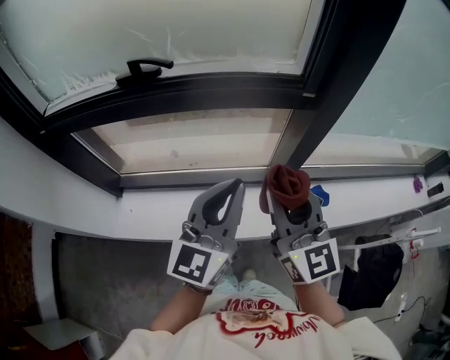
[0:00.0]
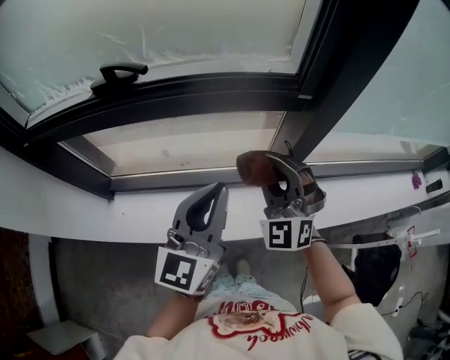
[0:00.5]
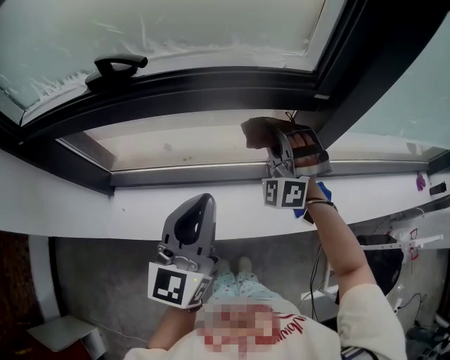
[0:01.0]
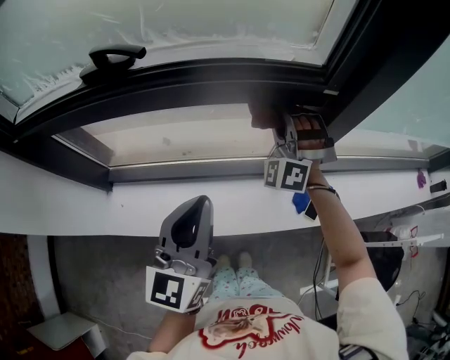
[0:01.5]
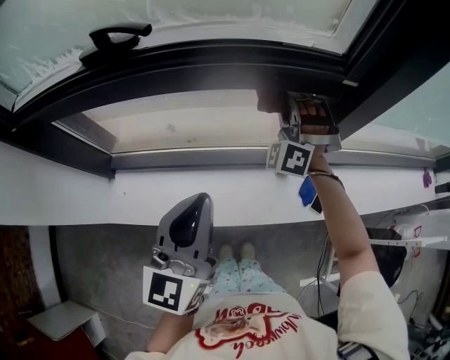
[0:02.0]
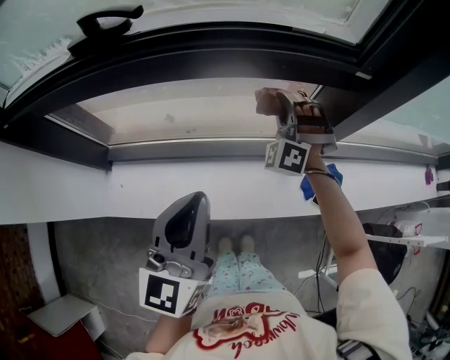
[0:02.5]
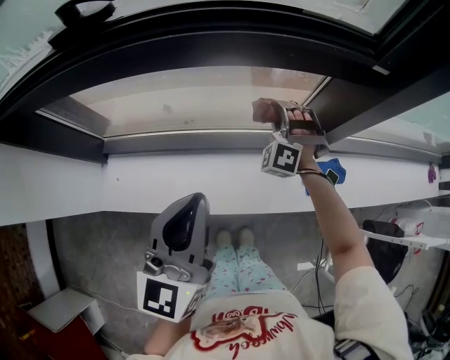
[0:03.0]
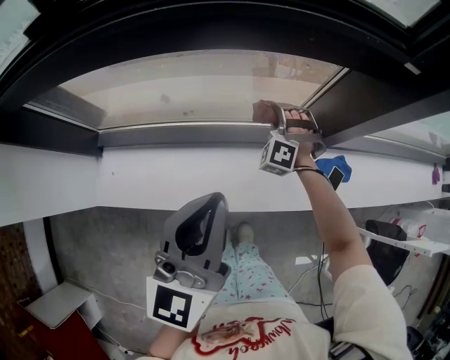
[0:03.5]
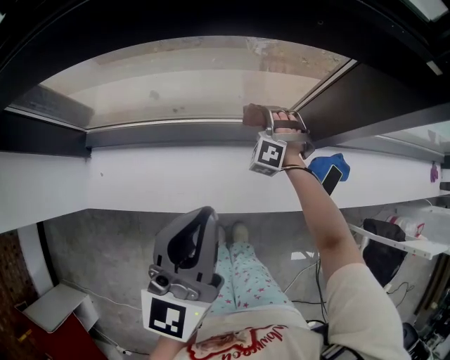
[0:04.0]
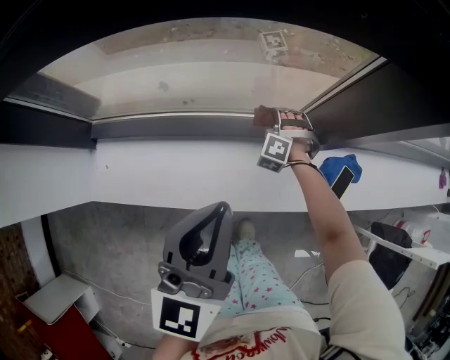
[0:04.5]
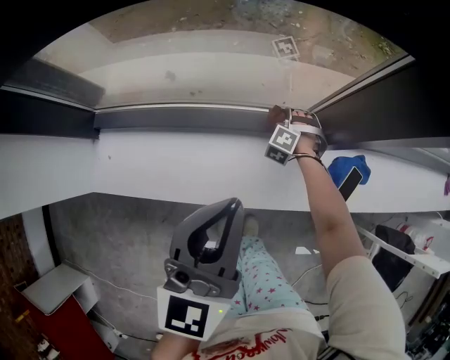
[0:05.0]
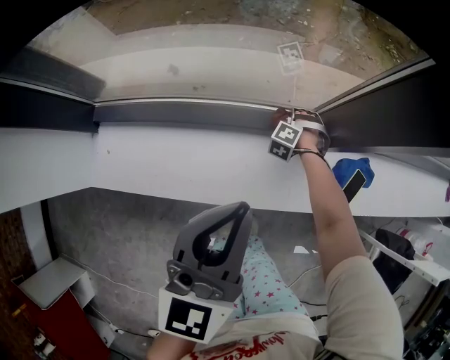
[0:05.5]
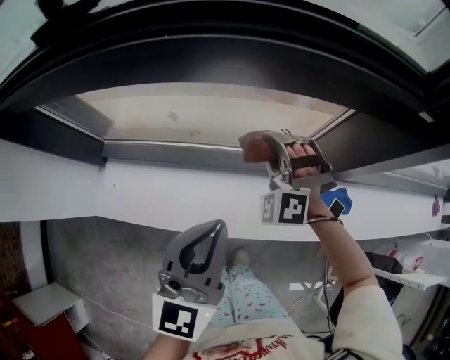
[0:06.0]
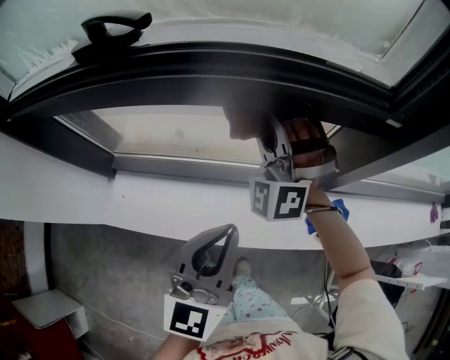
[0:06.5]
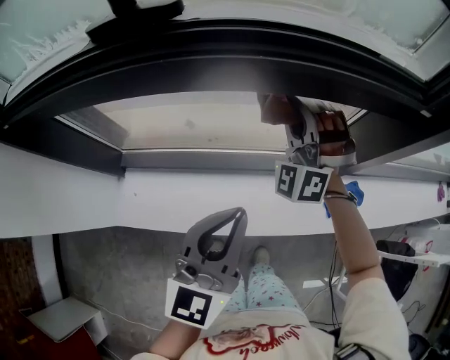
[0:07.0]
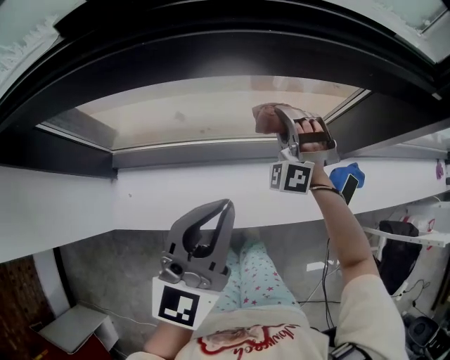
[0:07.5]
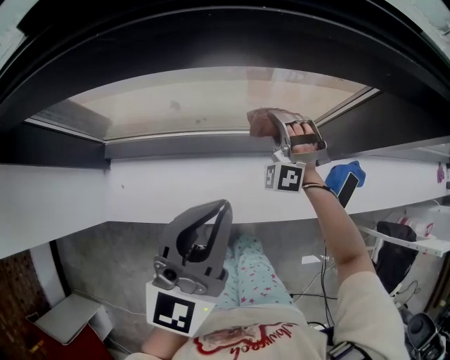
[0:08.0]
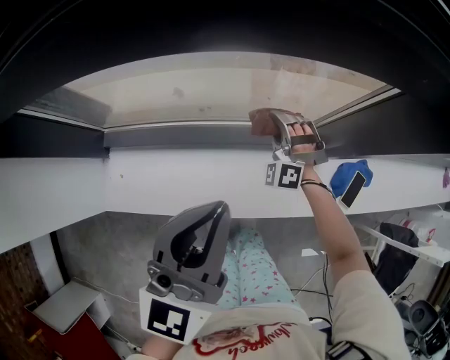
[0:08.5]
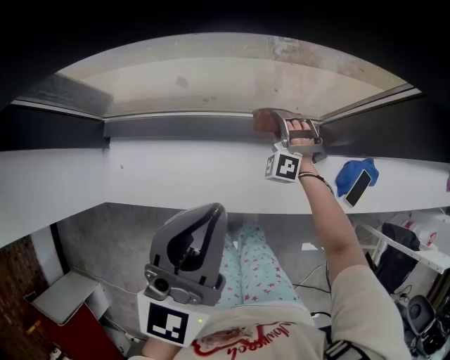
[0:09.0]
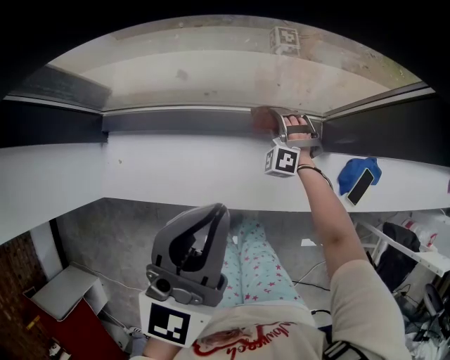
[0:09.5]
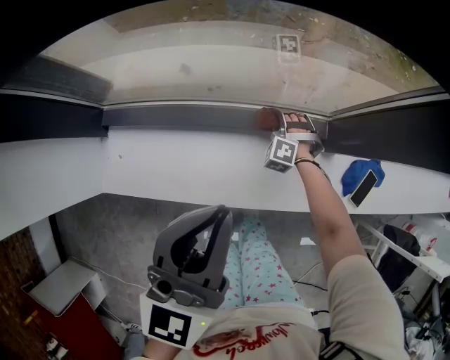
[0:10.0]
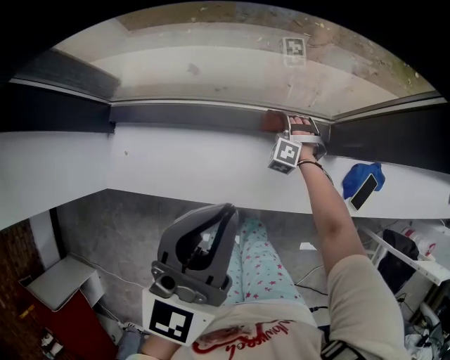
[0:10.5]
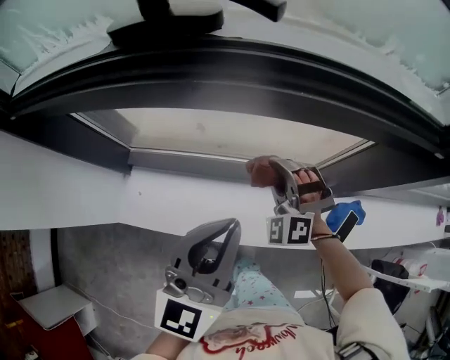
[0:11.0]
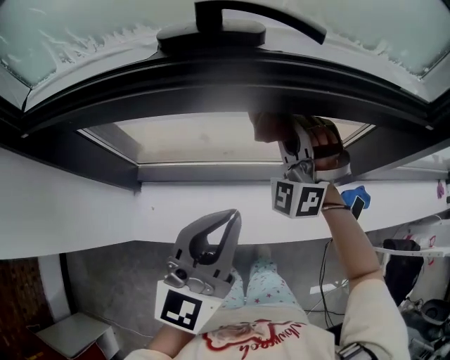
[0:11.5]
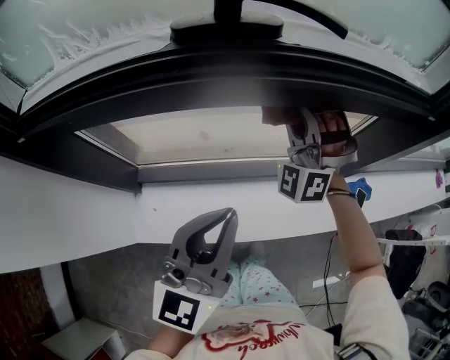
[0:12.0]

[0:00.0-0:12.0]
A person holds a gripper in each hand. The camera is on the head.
0:00.0 to 0:02.0: The left gripper heads to the left and downward, covering some 10 cm, while the right gripper heads forward and downward, covering roughly 30 cm, and rolls counterclockwise, seen from behind, by approximately 80 degrees.
0:02.0 to 0:04.0: The right gripper travels downward by approximately 30 cm, and turns by roughly 30 degrees. Meanwhile the left gripper moves downward, approximately 10 cm.
0:04.0 to 0:06.0: The right gripper is displaced upward by roughly 15 cm.
0:06.0 to 0:08.0: The right gripper reaches roughly 15 cm upward, then returns, while the left gripper travels to the left by about 5 cm.
0:08.0 to 0:10.0: The right gripper moves downward, roughly 25 cm, and turns by roughly 30 degrees. The left gripper moves downward, about 5 cm.
0:10.0 to 0:12.0: The right gripper heads upward, covering roughly 50 cm, and points its fingers about 50 degrees further upward. Meanwhile the left gripper heads upward and to the left, covering about 15 cm.

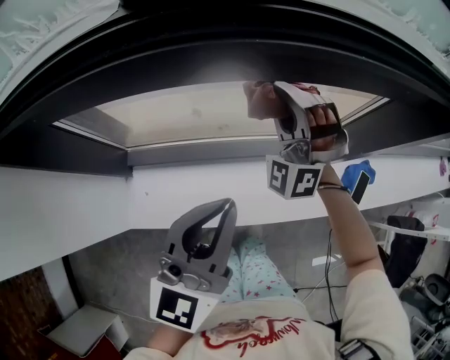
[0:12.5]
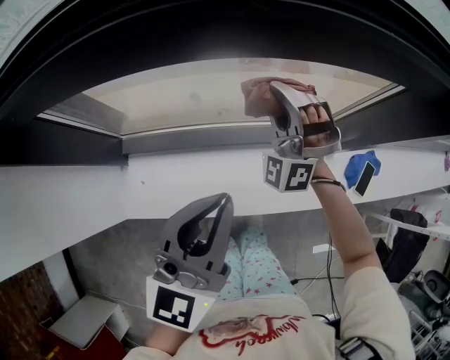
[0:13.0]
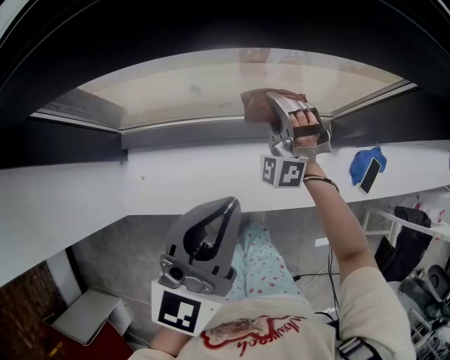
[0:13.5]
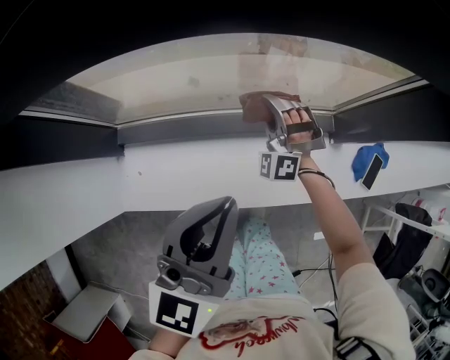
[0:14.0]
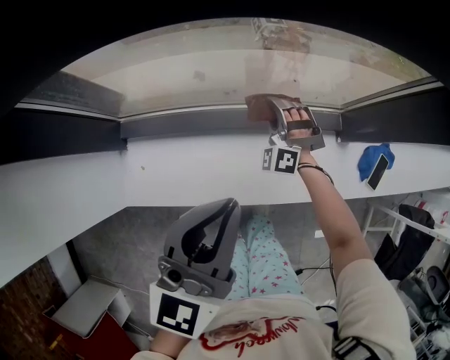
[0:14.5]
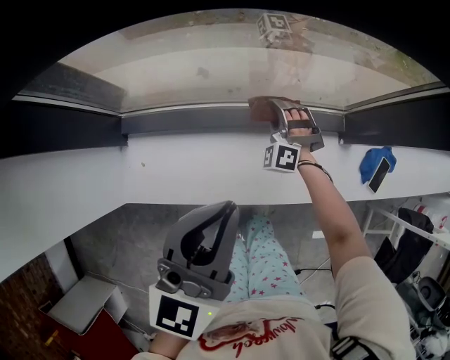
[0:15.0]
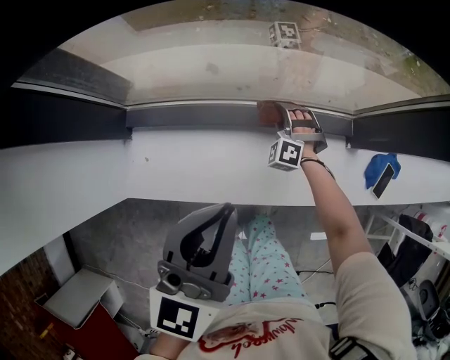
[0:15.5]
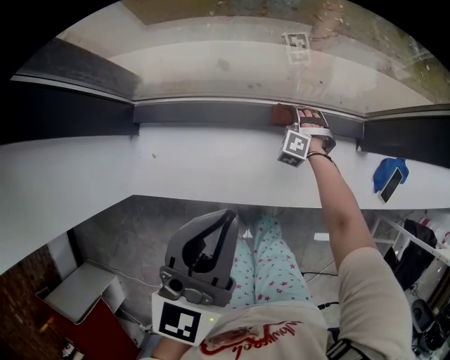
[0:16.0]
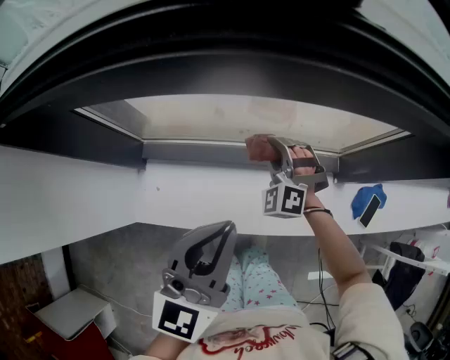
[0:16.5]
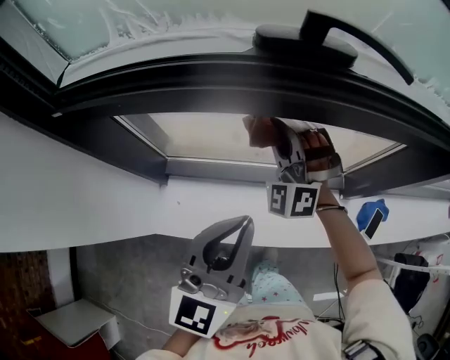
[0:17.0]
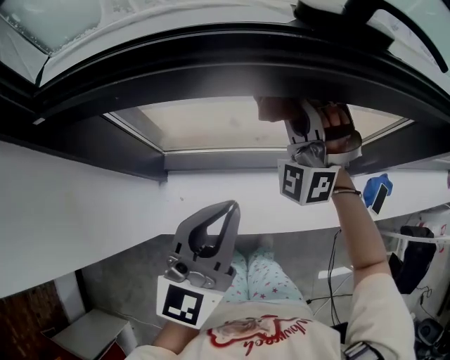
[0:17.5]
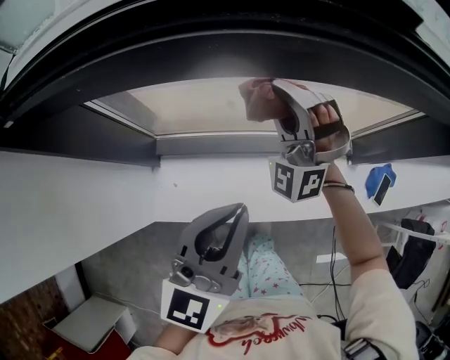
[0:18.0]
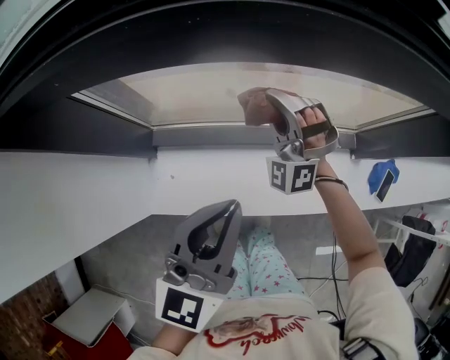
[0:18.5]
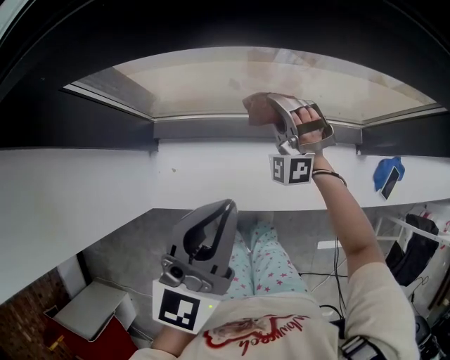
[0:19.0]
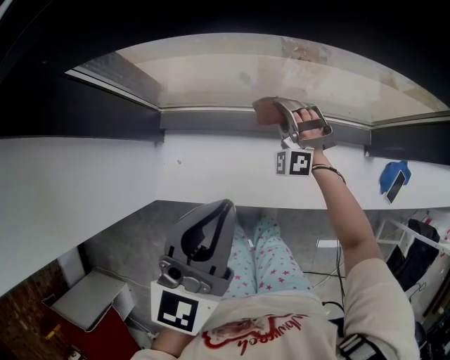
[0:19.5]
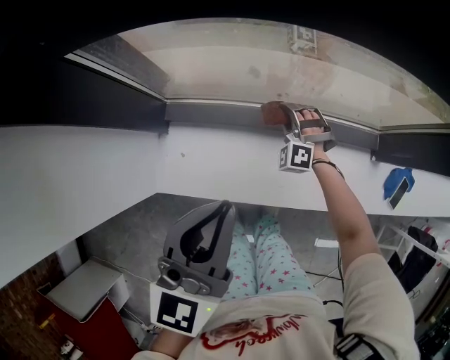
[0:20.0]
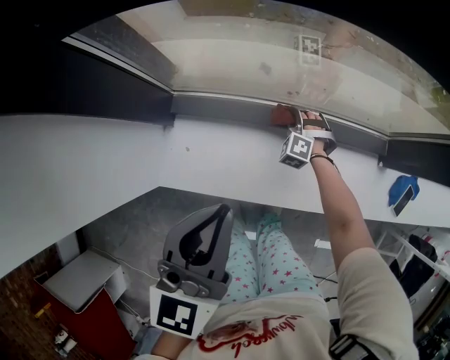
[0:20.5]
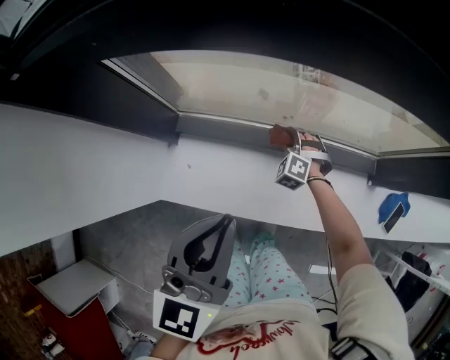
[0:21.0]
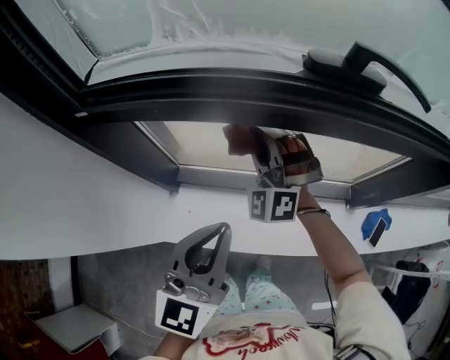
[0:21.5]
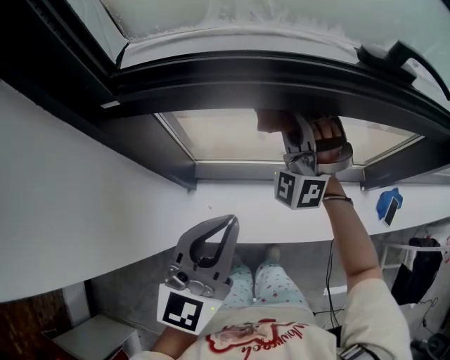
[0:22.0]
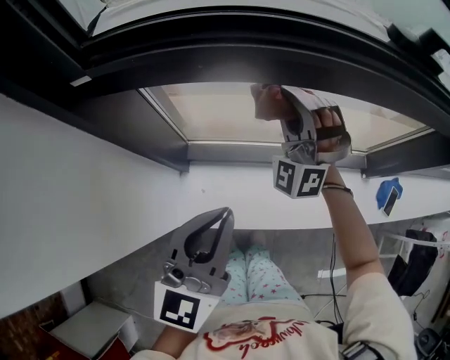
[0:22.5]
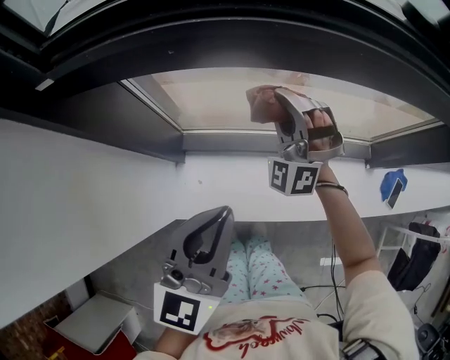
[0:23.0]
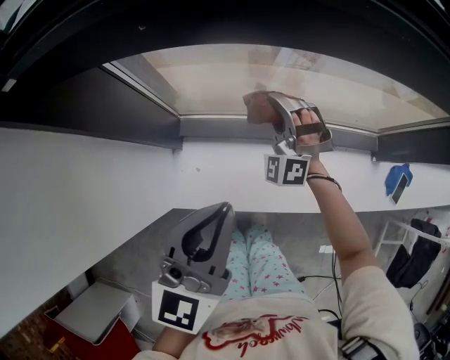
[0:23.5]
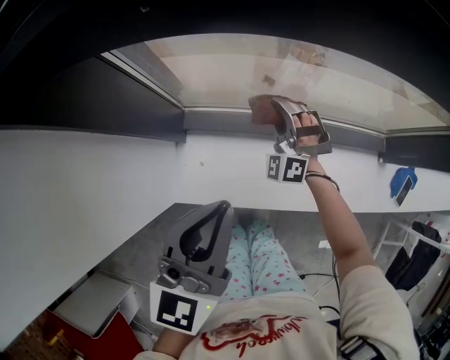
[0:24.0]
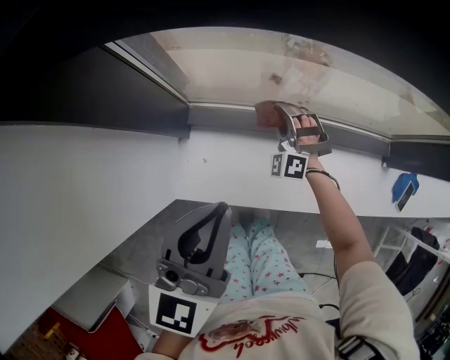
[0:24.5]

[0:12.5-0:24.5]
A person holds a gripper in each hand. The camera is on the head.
0:12.5 to 0:14.5: The left gripper is displaced downward by about 5 cm; the right gripper travels downward by roughly 30 cm, and turns by roughly 20 degrees.
0:14.5 to 0:16.5: The left gripper moves about 5 cm. Meanwhile the right gripper shifts about 10 cm upward.
0:16.5 to 0:18.5: The grippers both shift to the left by about 10 cm. The right gripper travels upward and back again, roughly 25 cm each way, and turns by about 20 degrees.
0:18.5 to 0:20.5: The left gripper goes roughly 5 cm downward and to the left, while the right gripper travels downward by about 35 cm, and angles its fingers downward, by about 40 degrees.
0:20.5 to 0:22.5: The left gripper is displaced upward and to the left by some 10 cm, while the right gripper travels upward by roughly 40 cm, and tips its fingers upward by roughly 50 degrees.
0:22.5 to 0:24.5: The left gripper heads downward, covering approximately 5 cm. Meanwhile the right gripper moves downward, some 30 cm, and turns by roughly 30 degrees.

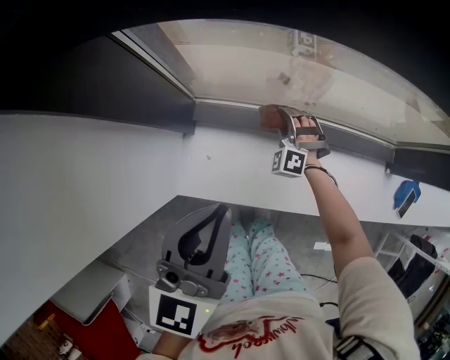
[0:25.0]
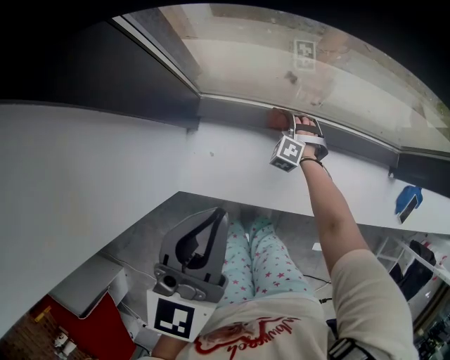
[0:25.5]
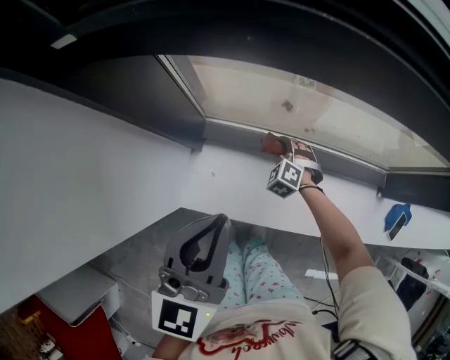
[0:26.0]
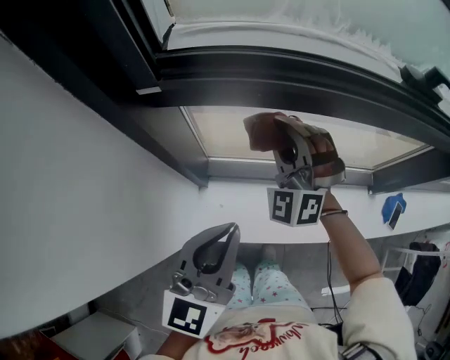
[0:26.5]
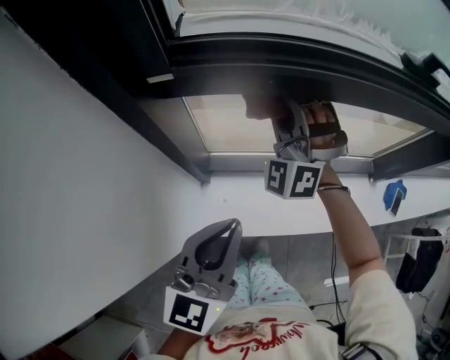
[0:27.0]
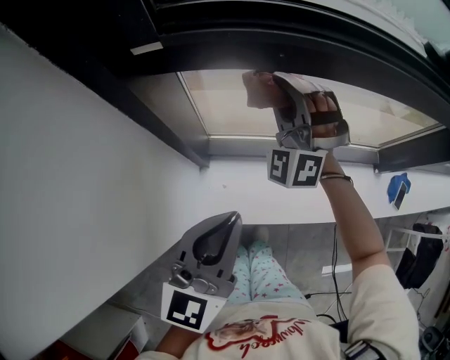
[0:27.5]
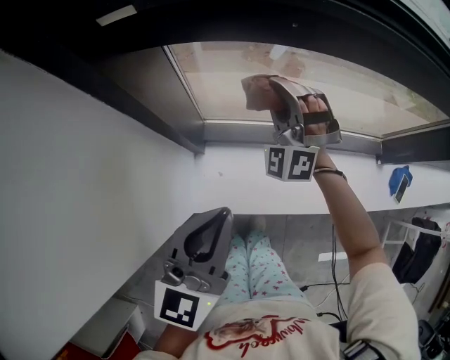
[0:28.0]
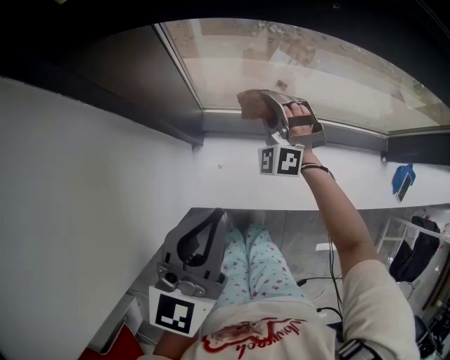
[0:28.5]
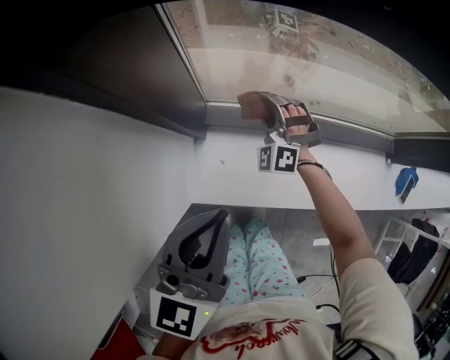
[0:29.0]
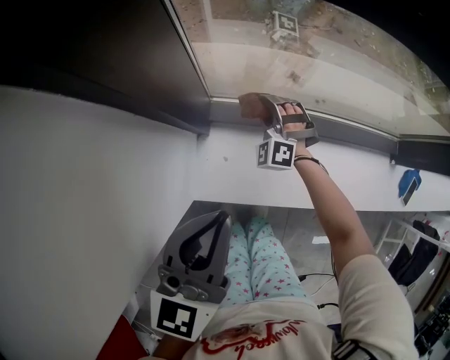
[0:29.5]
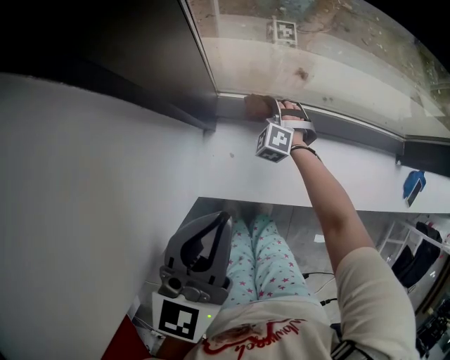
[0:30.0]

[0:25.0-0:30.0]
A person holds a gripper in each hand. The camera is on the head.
0:25.0 to 0:27.5: The left gripper is displaced upward and to the left by some 10 cm, while the right gripper moves up and down over some 50 cm, changing direction 2 times, and angles its fingers upward, by about 30 degrees.
0:27.5 to 0:30.0: The right gripper goes approximately 40 cm downward, and points its fingers some 40 degrees further downward, while the left gripper goes approximately 10 cm downward.
